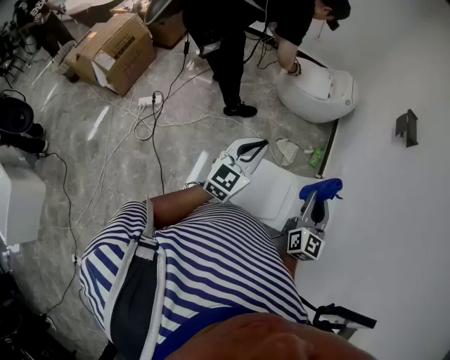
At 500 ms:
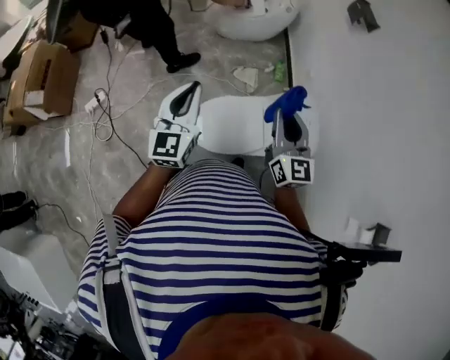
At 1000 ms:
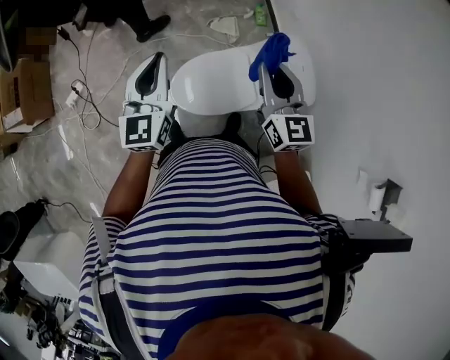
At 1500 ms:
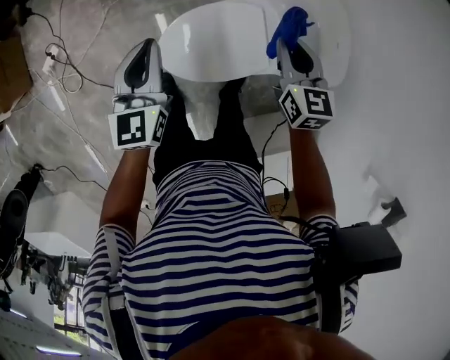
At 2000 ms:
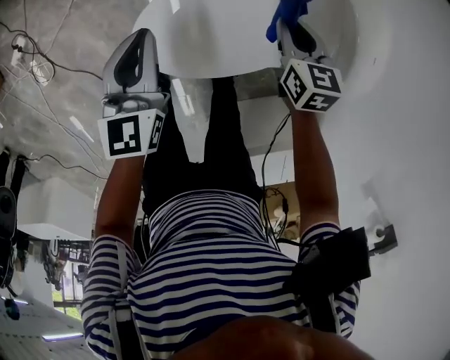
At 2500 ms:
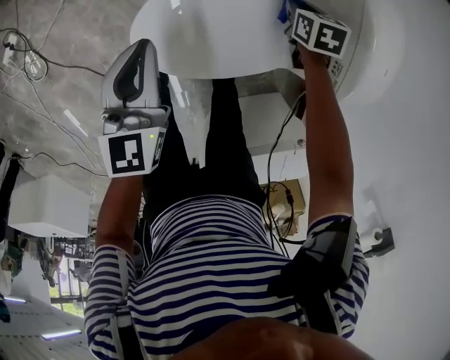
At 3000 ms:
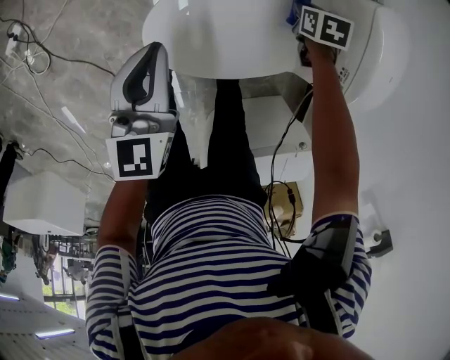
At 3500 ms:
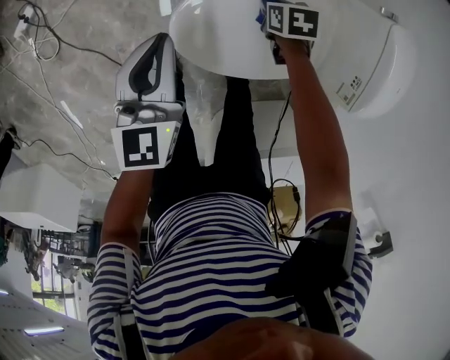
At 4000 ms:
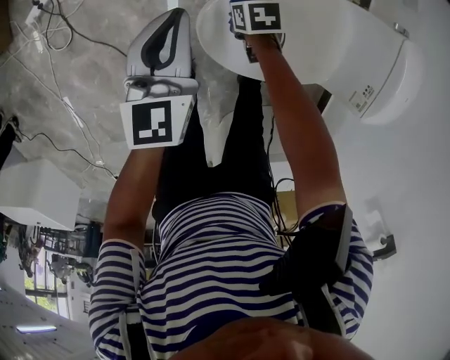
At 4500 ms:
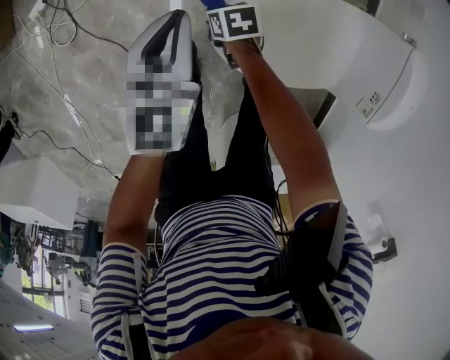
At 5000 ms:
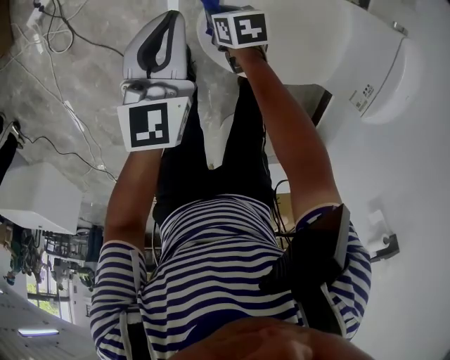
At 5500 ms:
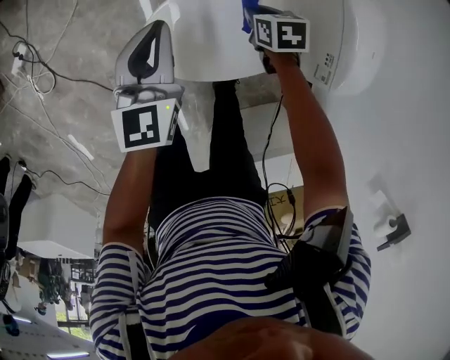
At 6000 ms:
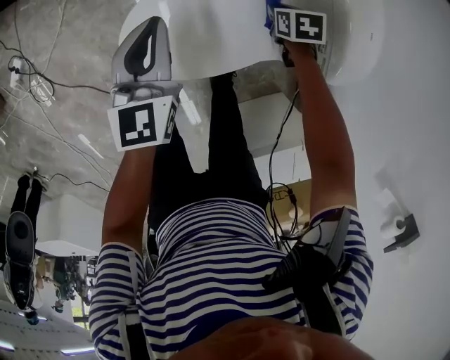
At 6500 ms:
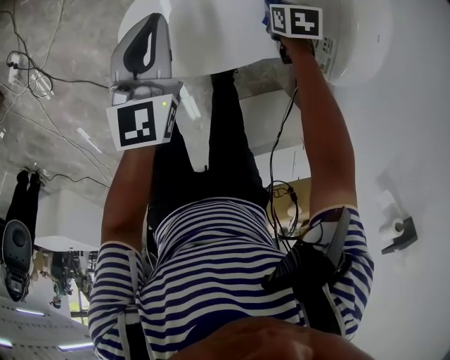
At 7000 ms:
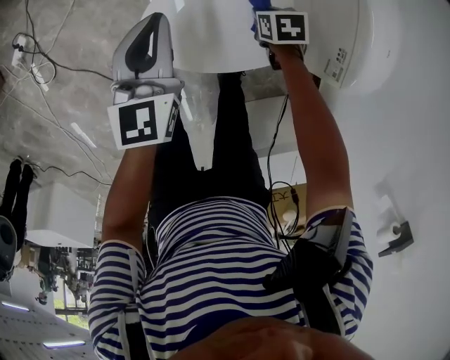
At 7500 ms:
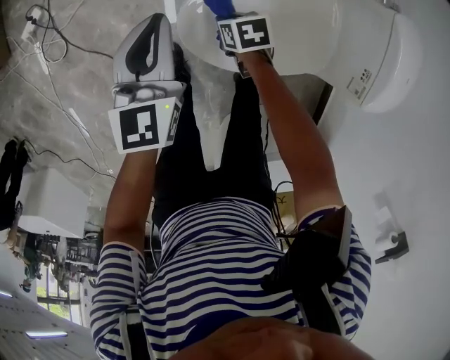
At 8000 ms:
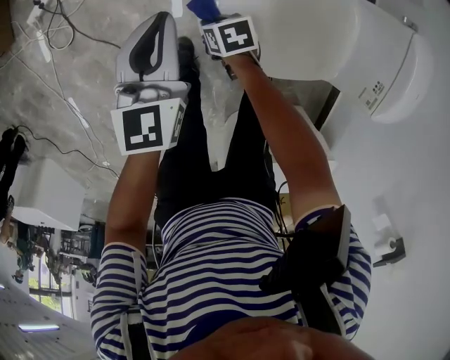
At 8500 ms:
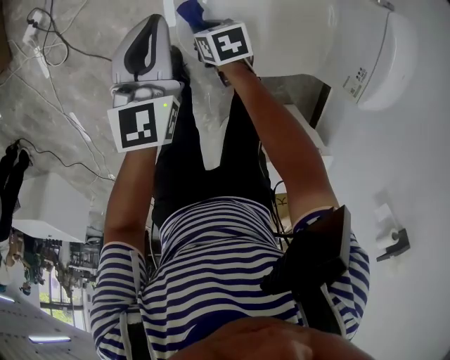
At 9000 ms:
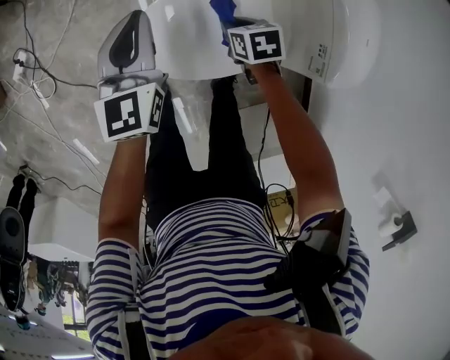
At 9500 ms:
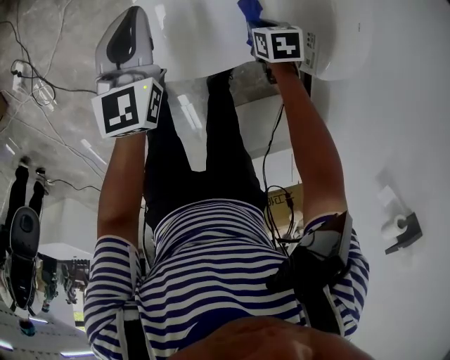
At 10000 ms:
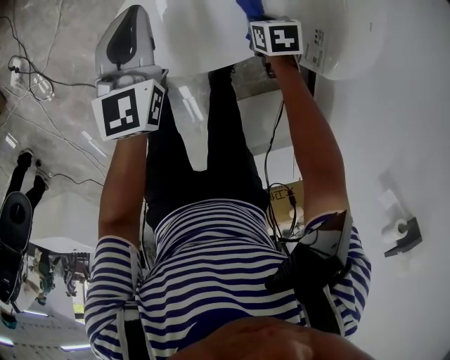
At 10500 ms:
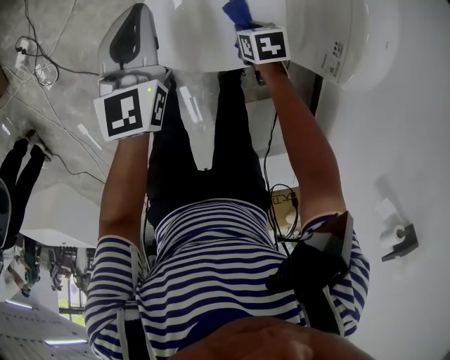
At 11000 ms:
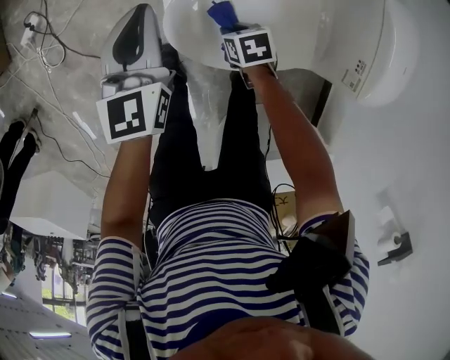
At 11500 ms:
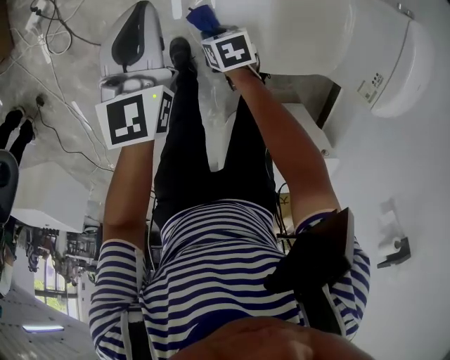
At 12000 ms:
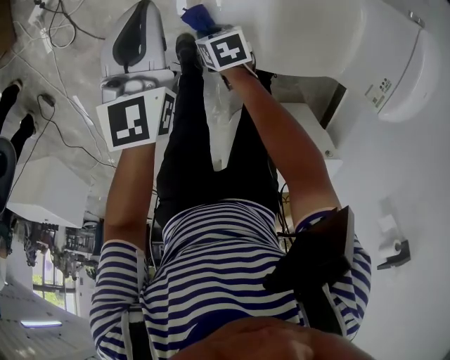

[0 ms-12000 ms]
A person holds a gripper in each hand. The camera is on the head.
0 ms to 2000 ms: Both grippers move downward, about 50 cm. The right gripper points its fingers approximately 40 degrees further downward. Meanwhile the left gripper turns by approximately 30 degrees.
2000 ms to 4000 ms: The right gripper changes place by about 35 cm, and swivels about 30 degrees, while the left gripper moves about 15 cm.
4000 ms to 6000 ms: The left gripper shifts by about 25 cm. Meanwhile the right gripper reaches about 10 cm upward, then returns.
6000 ms to 8000 ms: The left gripper shifts by approximately 25 cm; the right gripper shifts by approximately 40 cm, and changes its angle by about 30 degrees.
8000 ms to 10000 ms: The right gripper travels to the right and backward by about 40 cm, and changes its angle by about 20 degrees; the left gripper heads to the right, covering approximately 25 cm.
10000 ms to 12000 ms: The right gripper shifts some 40 cm to the left and forward, and swivels roughly 20 degrees. Meanwhile the left gripper goes some 25 cm to the left and forward.

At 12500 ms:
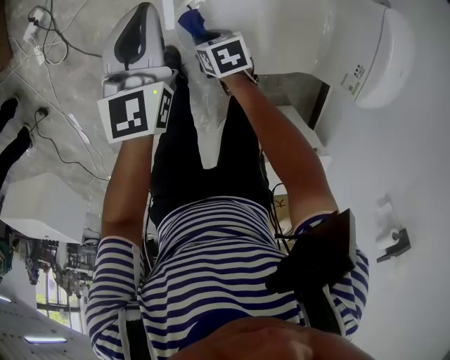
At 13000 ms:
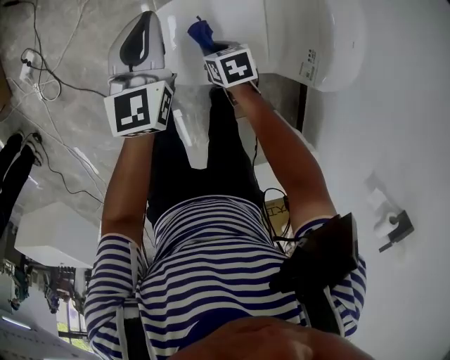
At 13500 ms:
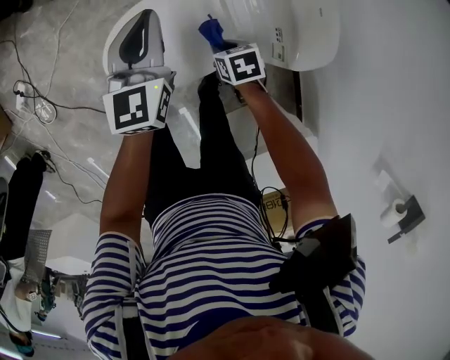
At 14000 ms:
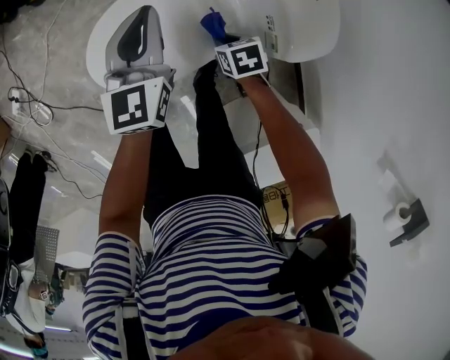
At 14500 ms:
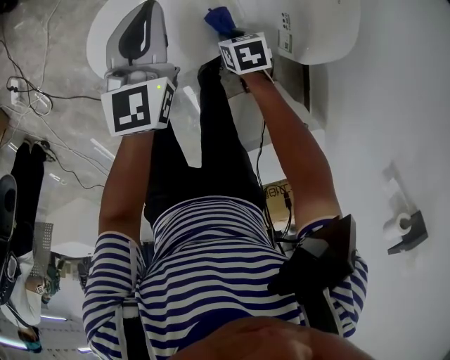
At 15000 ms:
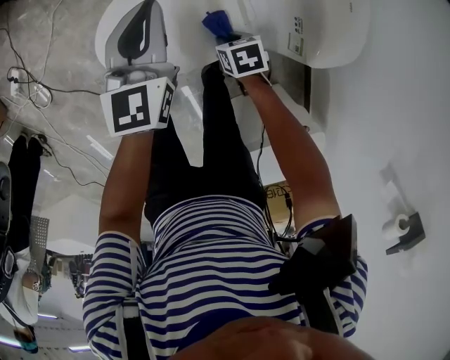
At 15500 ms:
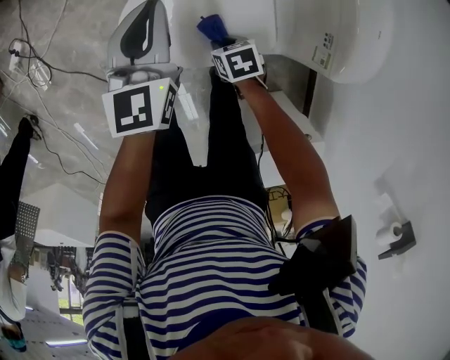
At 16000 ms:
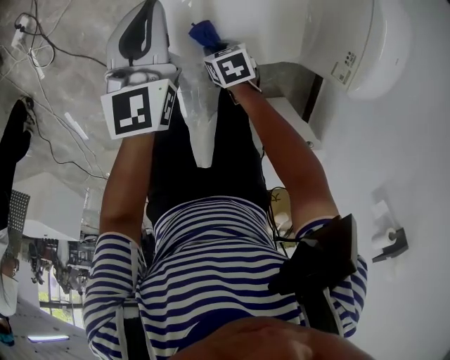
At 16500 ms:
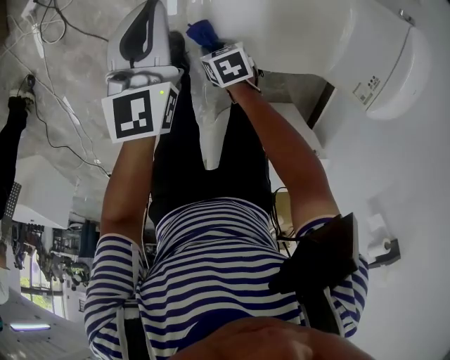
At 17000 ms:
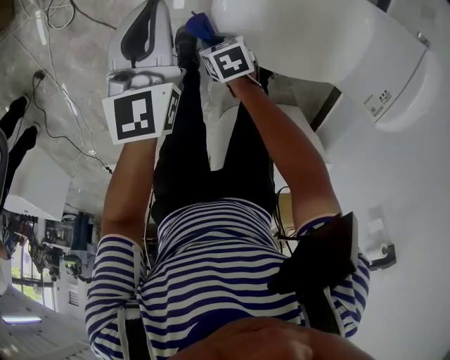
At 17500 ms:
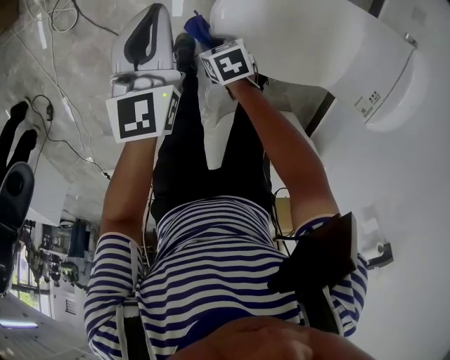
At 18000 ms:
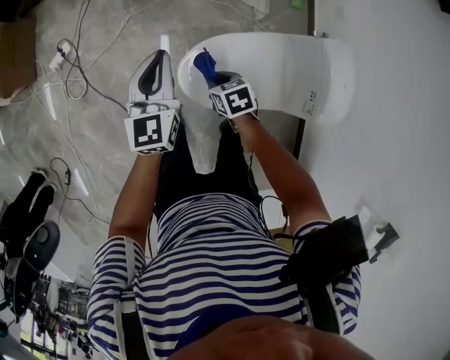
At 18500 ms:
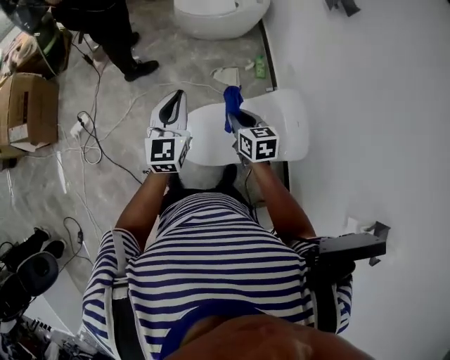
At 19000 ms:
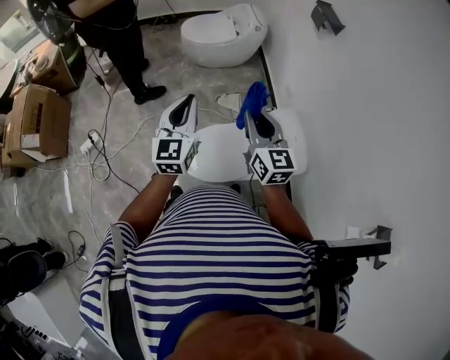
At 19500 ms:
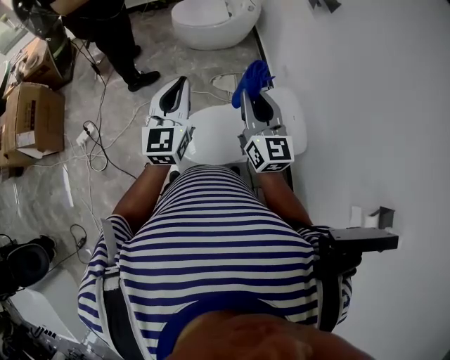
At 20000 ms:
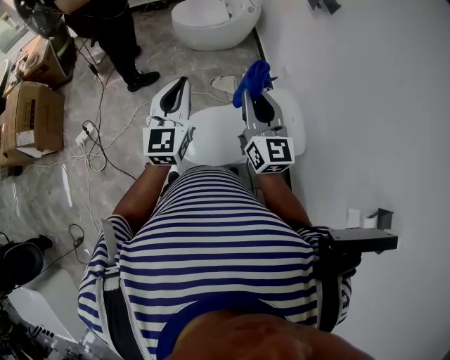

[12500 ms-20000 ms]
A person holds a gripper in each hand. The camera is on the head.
12500 ms to 14500 ms: The right gripper travels to the right and backward by roughly 35 cm, and turns by about 20 degrees, while the left gripper travels to the right by about 30 cm.
14500 ms to 16500 ms: The right gripper moves roughly 40 cm, and turns by about 30 degrees. Meanwhile the left gripper changes place by approximately 35 cm, and changes its angle by roughly 20 degrees.
16500 ms to 18000 ms: The right gripper travels upward and to the right by approximately 30 cm. Meanwhile the left gripper moves upward, roughly 20 cm.
18000 ms to 20000 ms: The left gripper moves upward, some 35 cm, and changes its angle by some 20 degrees. The right gripper heads upward, covering approximately 50 cm, and tilts its fingers some 60 degrees upward.

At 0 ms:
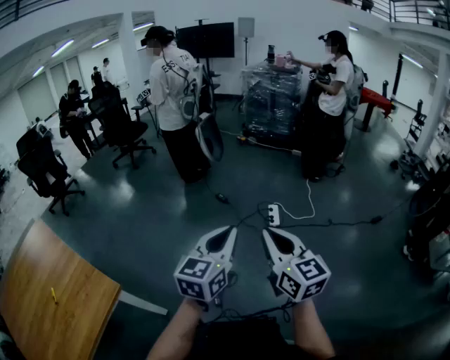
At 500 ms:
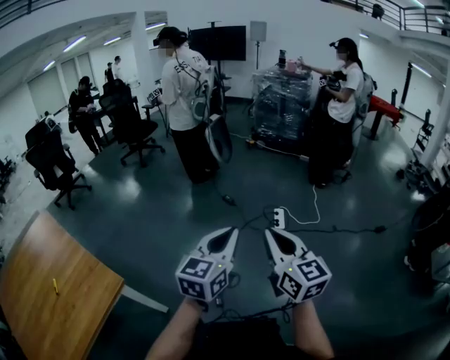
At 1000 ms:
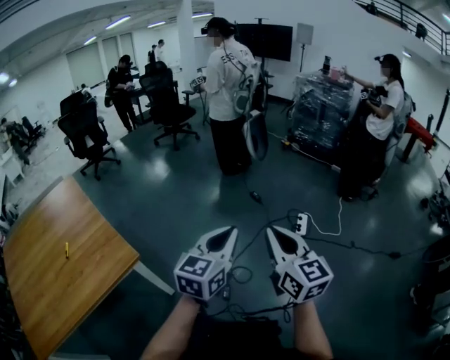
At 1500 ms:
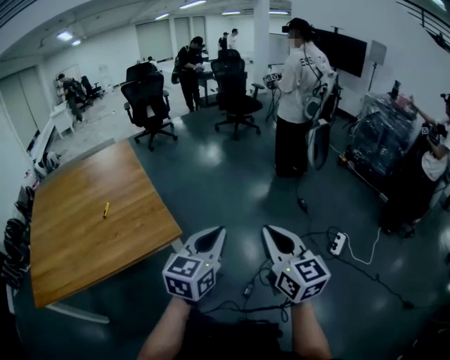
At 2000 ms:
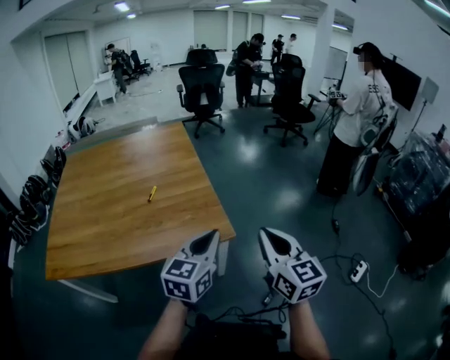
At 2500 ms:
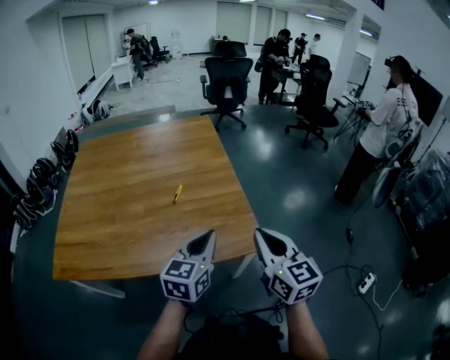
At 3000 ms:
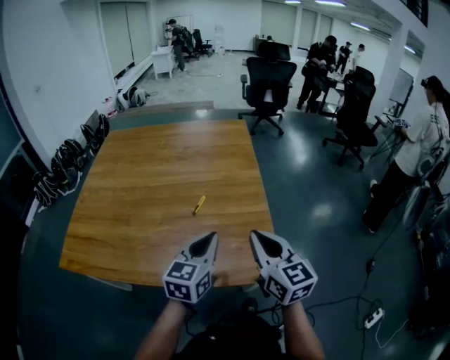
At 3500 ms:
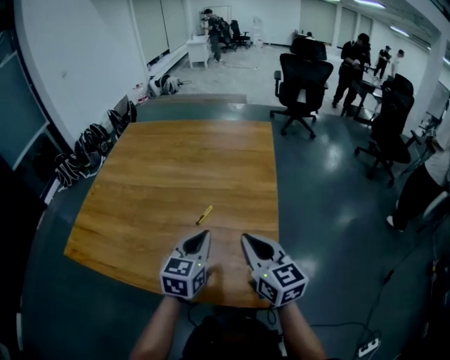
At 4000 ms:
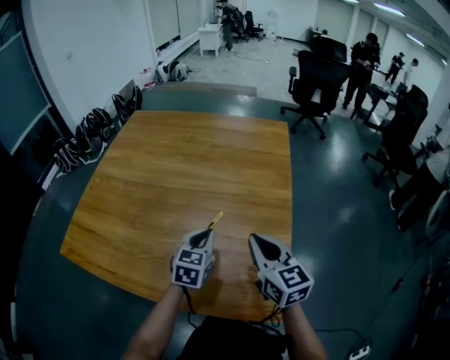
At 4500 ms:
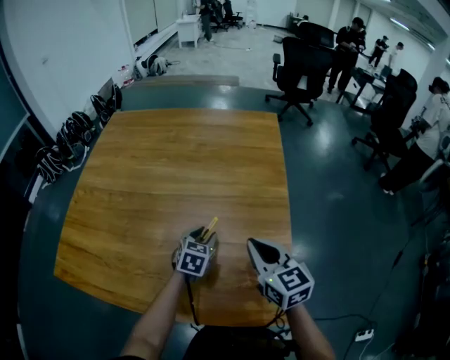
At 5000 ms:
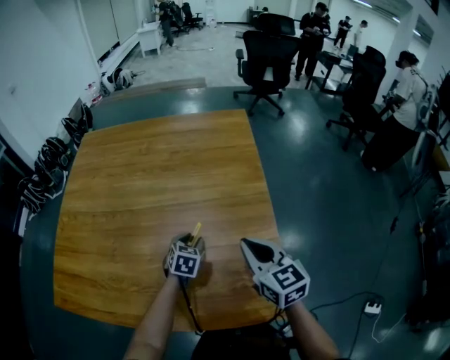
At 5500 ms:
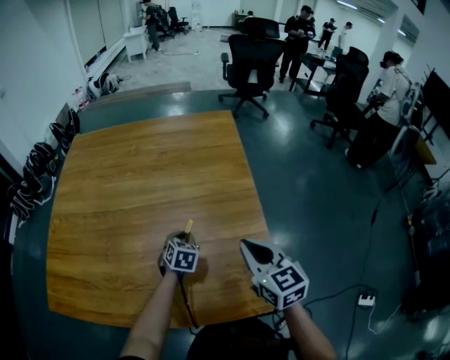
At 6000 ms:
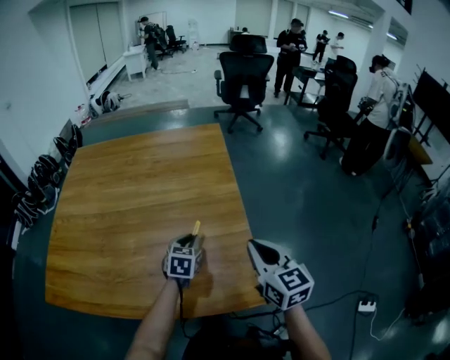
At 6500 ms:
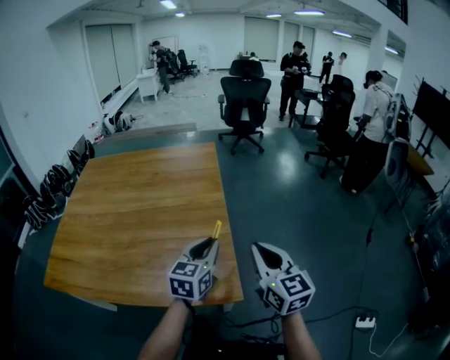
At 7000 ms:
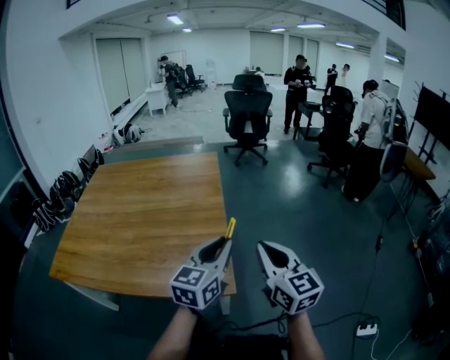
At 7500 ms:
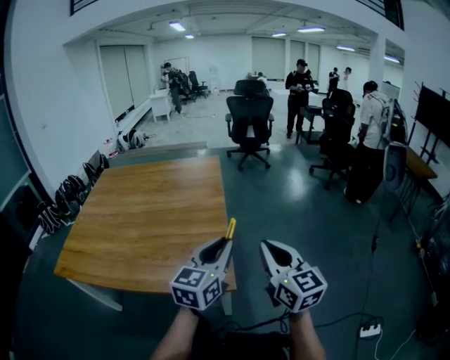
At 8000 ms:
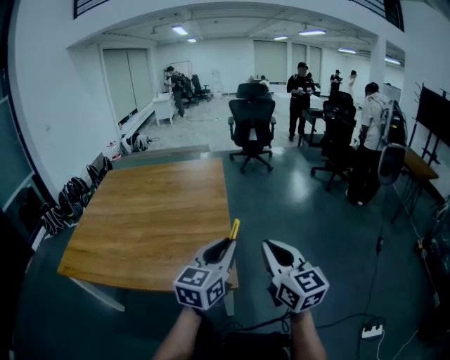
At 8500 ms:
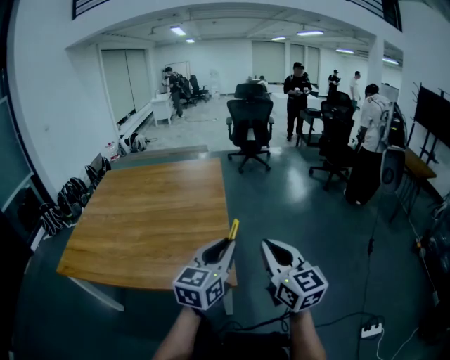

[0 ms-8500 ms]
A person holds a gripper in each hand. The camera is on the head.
0 ms to 2000 ms: Both grippers are carried roughly 50 cm. The right gripper changes its angle by approximately 50 degrees, while the left gripper turns by some 50 degrees.
2000 ms to 4000 ms: The left gripper shifts by roughly 40 cm, and changes its angle by roughly 40 degrees. The right gripper moves approximately 40 cm, and swivels roughly 30 degrees.
4000 ms to 6500 ms: The left gripper moves to the right, backward and upward, about 25 cm, swivels approximately 20 degrees, and opens, then closes again. The right gripper goes roughly 25 cm to the right and backward, and turns by about 20 degrees.
6500 ms to 8500 ms: The right gripper shifts some 15 cm backward, to the right and upward. The left gripper goes some 20 cm backward, upward and to the right.
